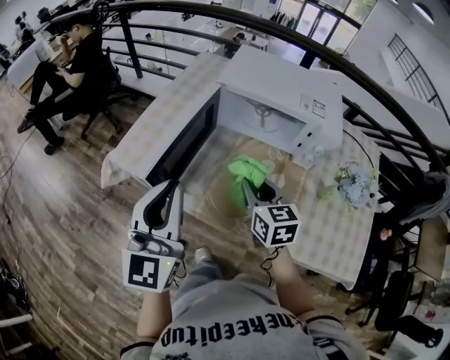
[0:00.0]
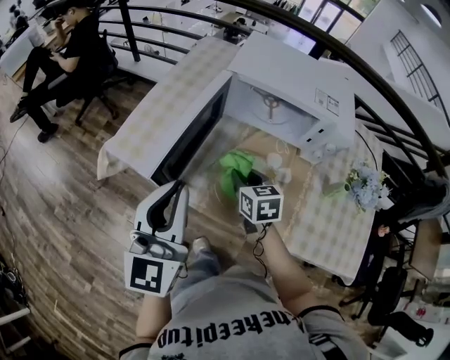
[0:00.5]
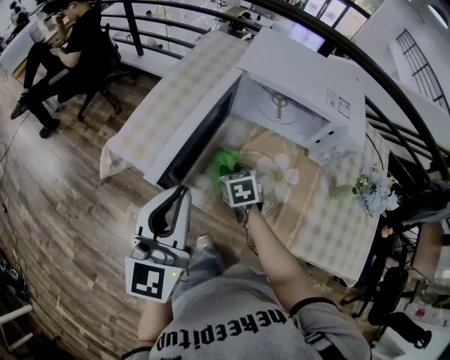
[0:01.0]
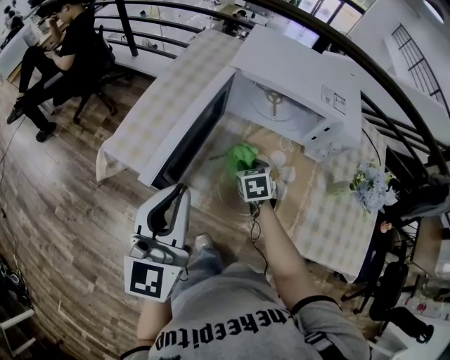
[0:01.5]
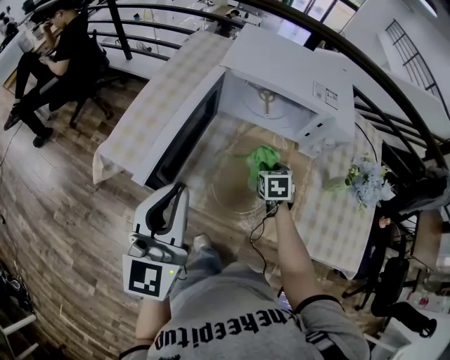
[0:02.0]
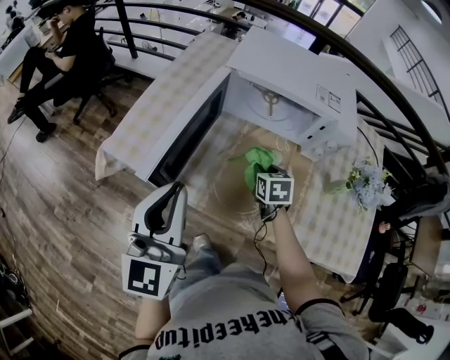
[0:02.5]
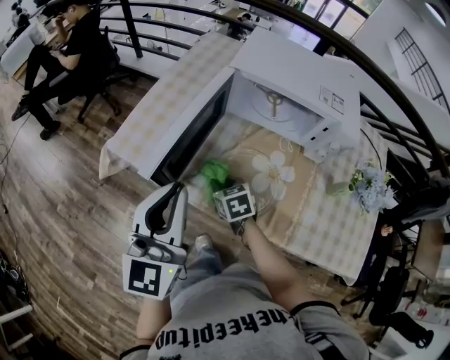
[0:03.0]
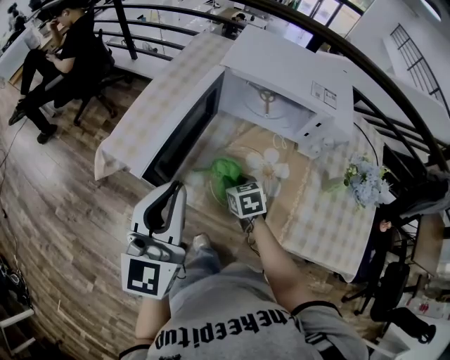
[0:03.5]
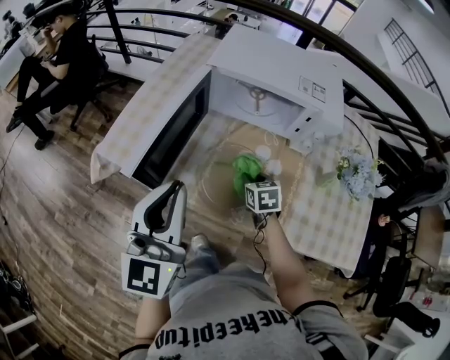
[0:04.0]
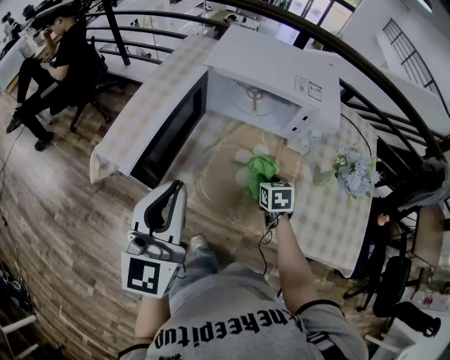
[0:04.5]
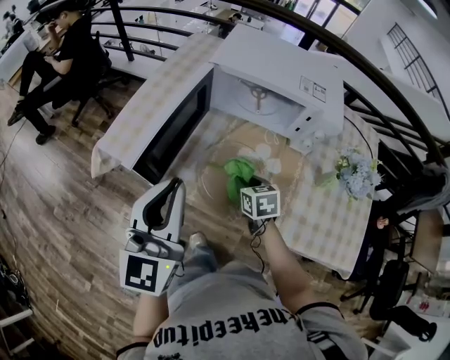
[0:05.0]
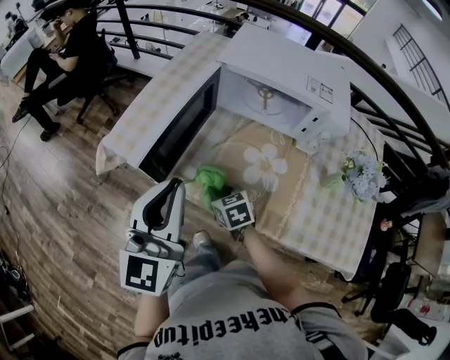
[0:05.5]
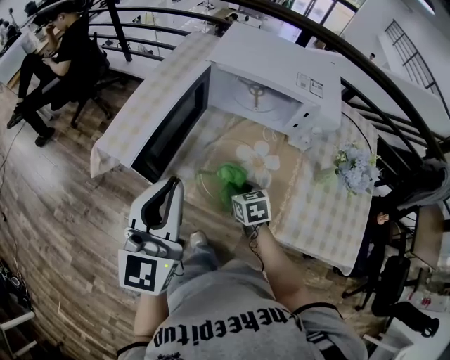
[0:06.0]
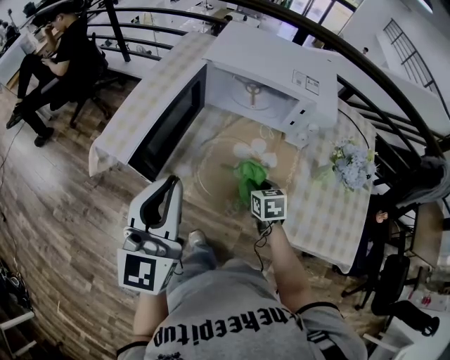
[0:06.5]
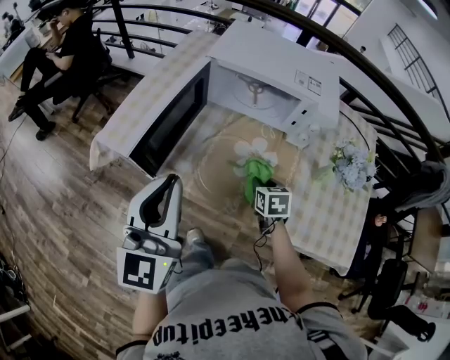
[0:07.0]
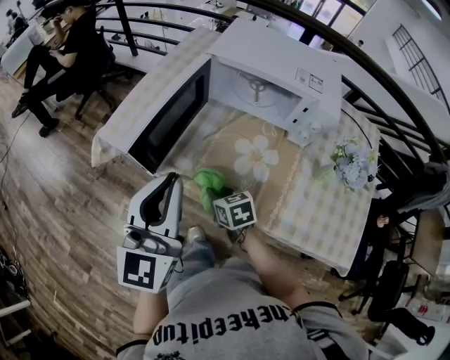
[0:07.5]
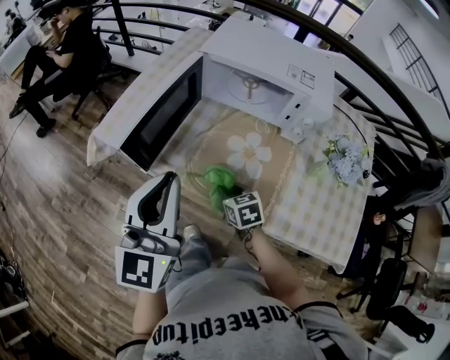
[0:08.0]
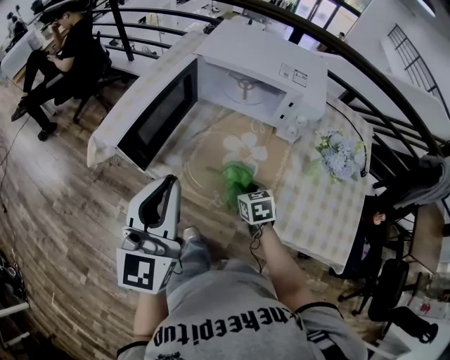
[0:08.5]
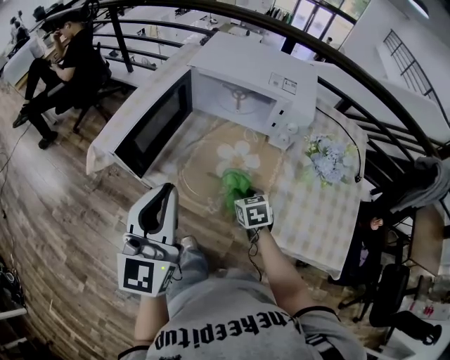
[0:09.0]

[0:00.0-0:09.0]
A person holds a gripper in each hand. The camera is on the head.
0:00.0 to 0:02.0: The right gripper moves downward, forward and to the right, roughly 20 cm, and changes its angle by about 30 degrees. The left gripper heads downward, covering approximately 5 cm.
0:02.0 to 0:04.5: The right gripper moves backward, about 5 cm, and moves roughly 20 cm to the left and comes back. Meanwhile the left gripper changes place by some 5 cm.
0:04.5 to 0:07.0: The right gripper reaches some 20 cm to the left, then returns.
0:07.0 to 0:09.0: The left gripper is displaced backward by approximately 5 cm. The right gripper moves about 15 cm to the left and comes back.

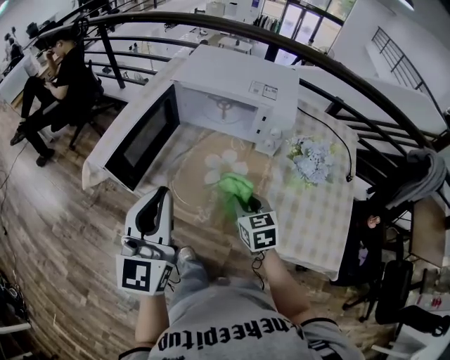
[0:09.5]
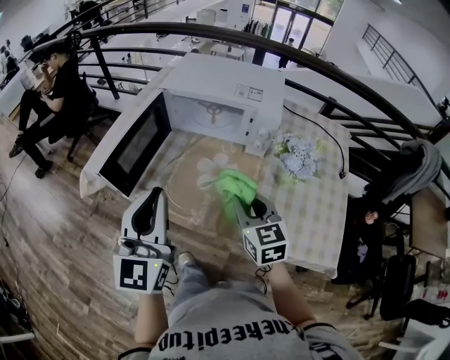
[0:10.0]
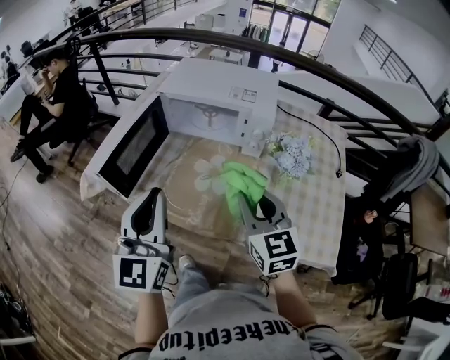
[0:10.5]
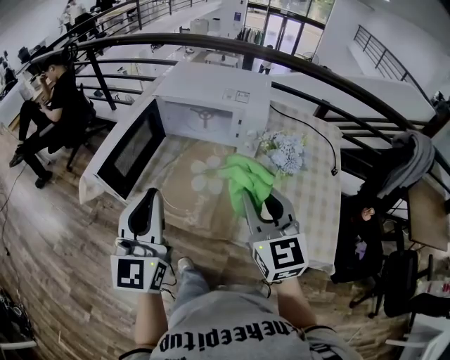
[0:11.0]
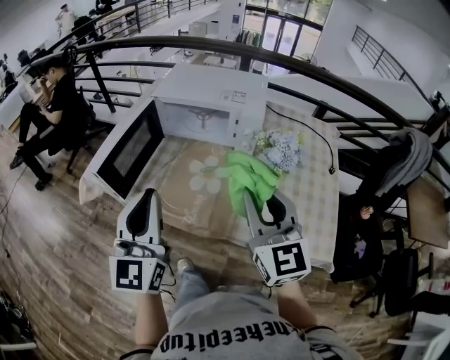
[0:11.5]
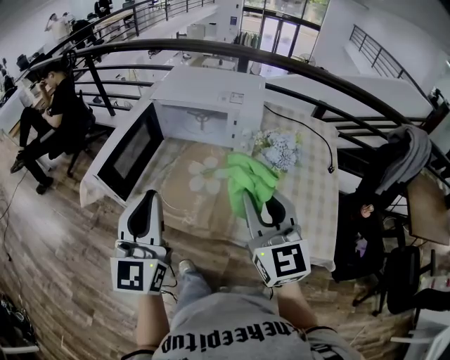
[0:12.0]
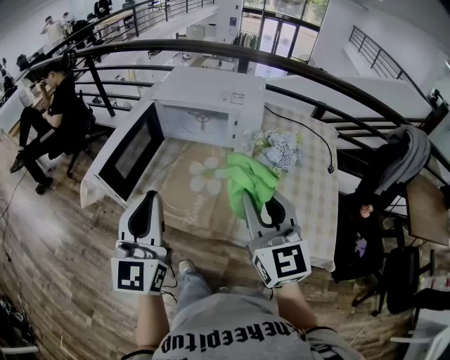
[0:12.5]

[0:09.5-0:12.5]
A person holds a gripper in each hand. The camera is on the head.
0:09.5 to 0:11.0: The right gripper travels upward by about 20 cm, and rotates approximately 30 degrees.
0:11.0 to 0:12.5: There are only small adjustments of the grippers.

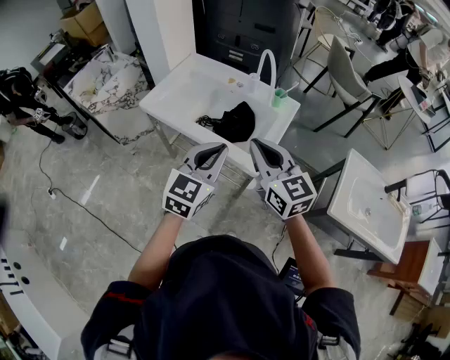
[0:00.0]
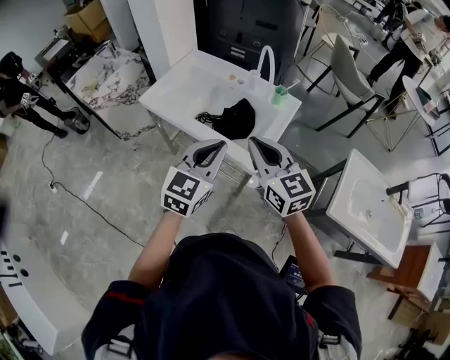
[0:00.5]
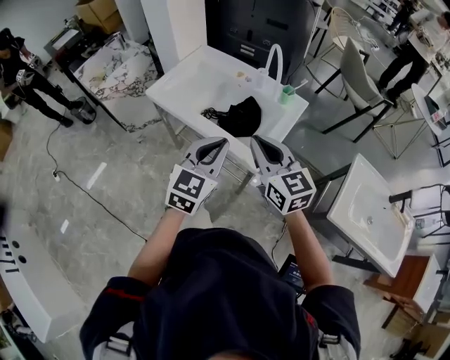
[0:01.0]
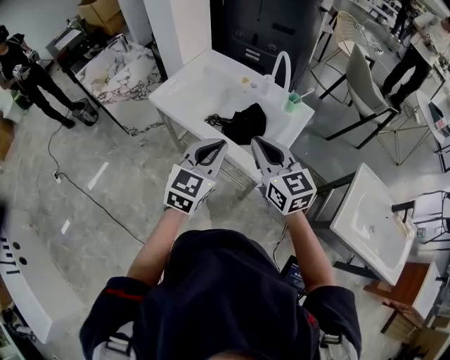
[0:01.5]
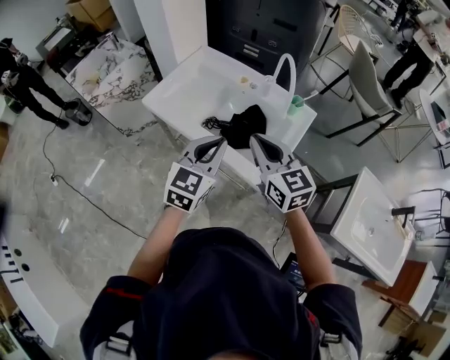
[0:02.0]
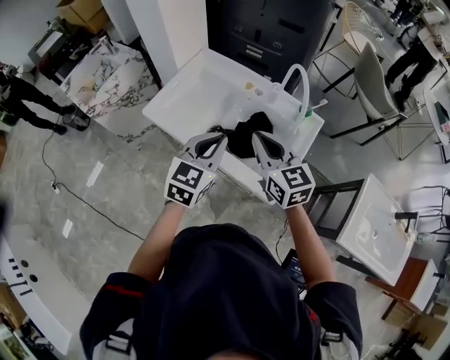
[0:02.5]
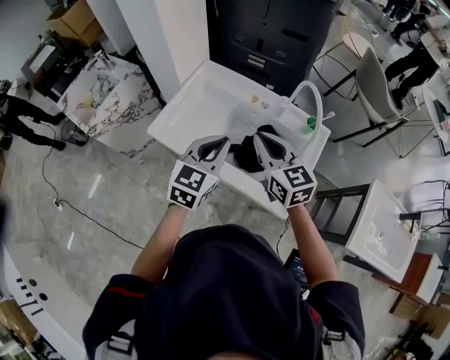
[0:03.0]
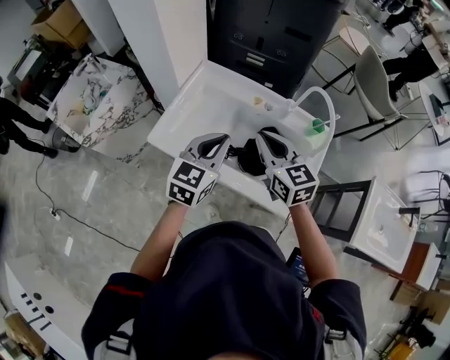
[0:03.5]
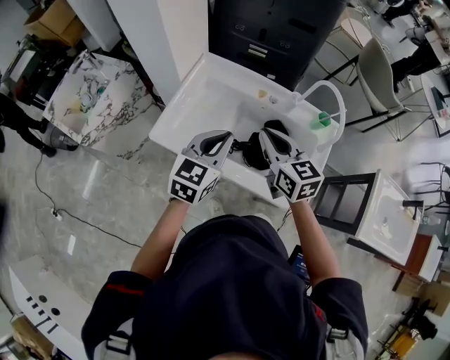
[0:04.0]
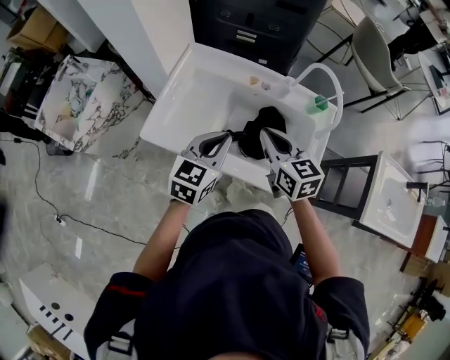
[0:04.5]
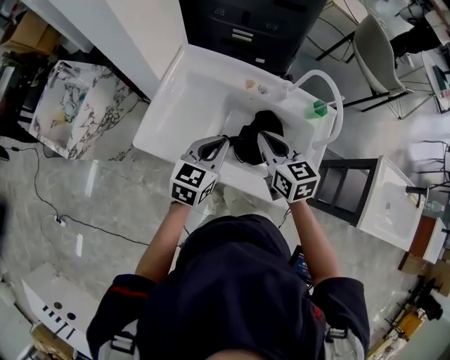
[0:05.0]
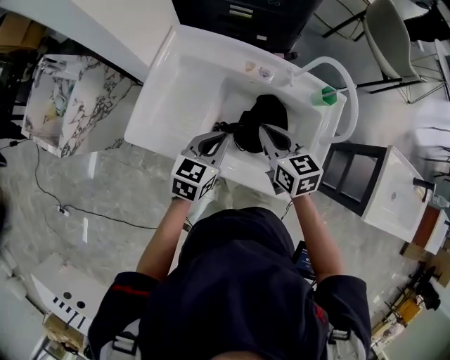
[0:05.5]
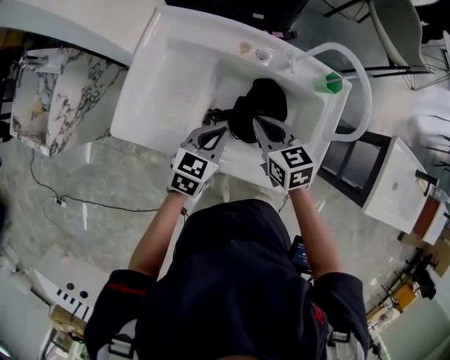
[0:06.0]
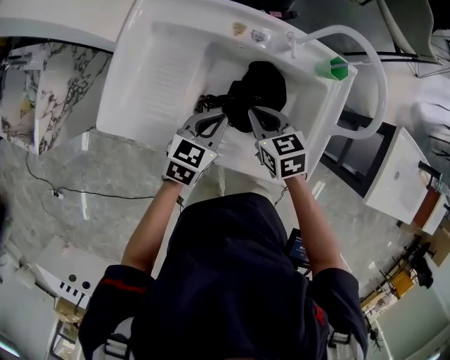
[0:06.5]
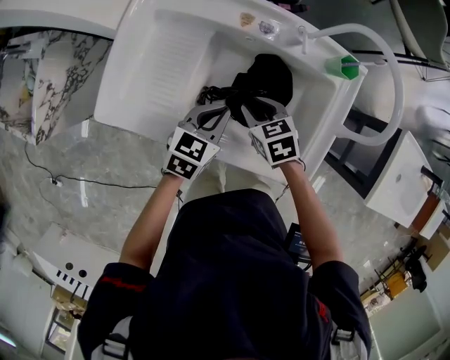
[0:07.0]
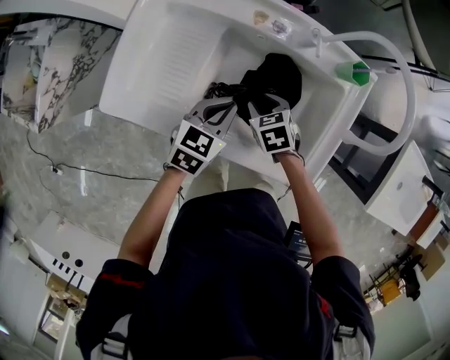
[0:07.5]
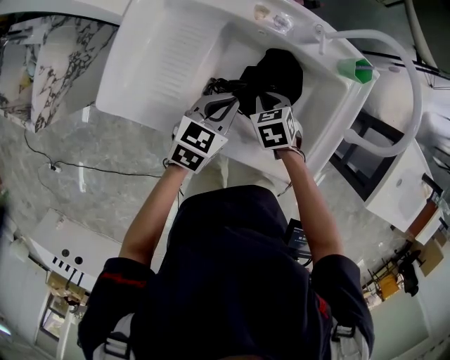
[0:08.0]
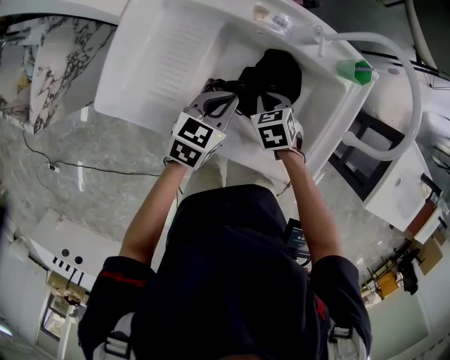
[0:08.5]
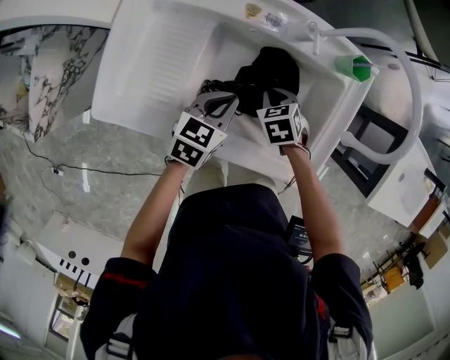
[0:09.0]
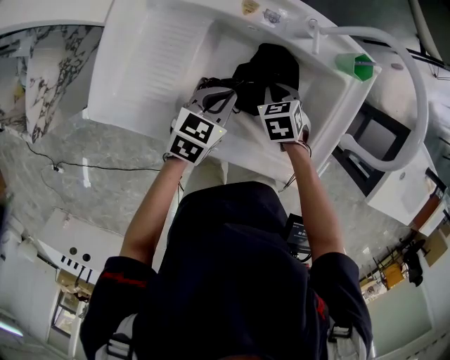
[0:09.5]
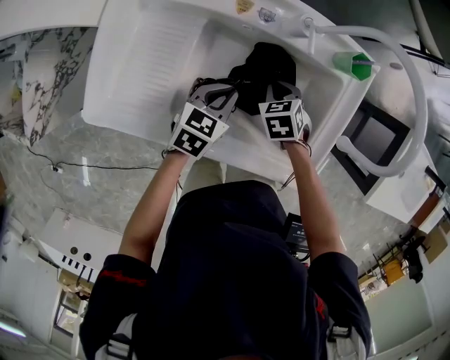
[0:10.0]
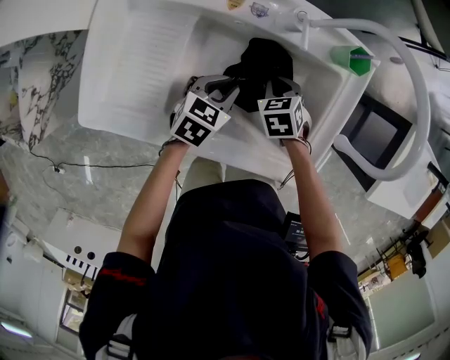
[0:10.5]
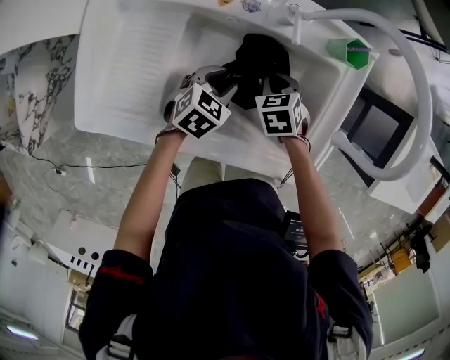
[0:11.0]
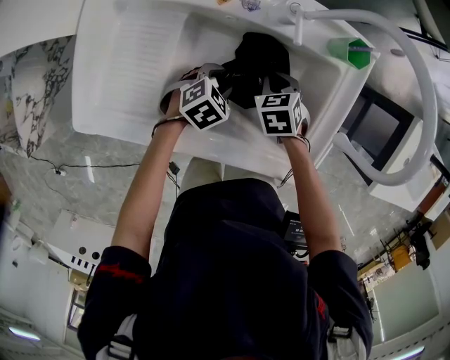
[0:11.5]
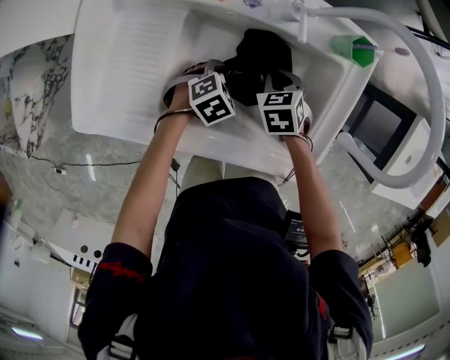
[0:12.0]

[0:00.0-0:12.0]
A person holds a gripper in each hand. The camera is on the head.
0:00.0 to 0:02.0: The two grippers go some 10 cm forward.
0:02.0 to 0:04.0: Both grippers travel together forward and to the left, approximately 20 cm.
0:04.0 to 0:06.0: The two grippers go about 20 cm downward. The left gripper swivels about 20 degrees.
0:06.0 to 0:08.0: The right gripper travels downward by approximately 15 cm, points its fingers approximately 30 degrees further downward, and opens, then closes once more.
0:08.0 to 0:10.0: The right gripper travels to the right and forward by approximately 5 cm. The left gripper goes roughly 5 cm downward.
0:10.0 to 0:12.0: The left gripper shifts roughly 10 cm downward, swivels roughly 40 degrees, and opens up.

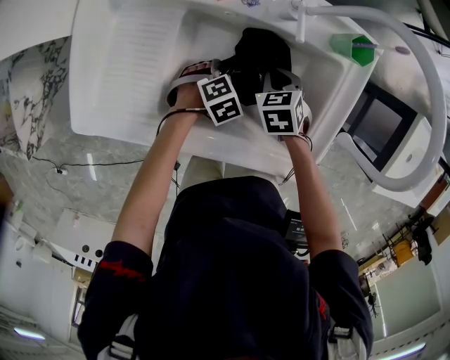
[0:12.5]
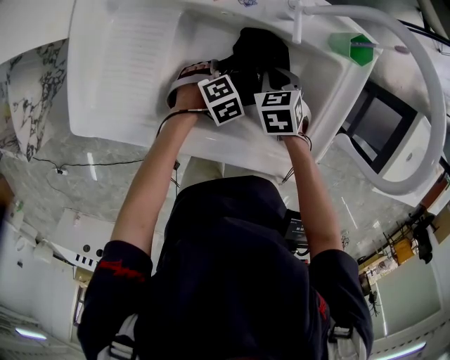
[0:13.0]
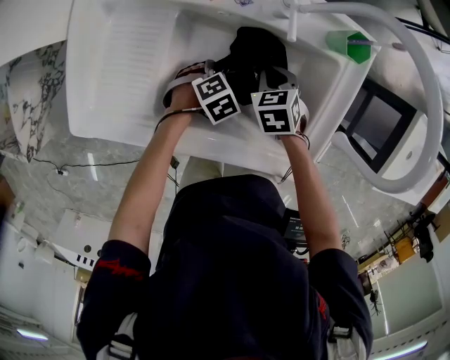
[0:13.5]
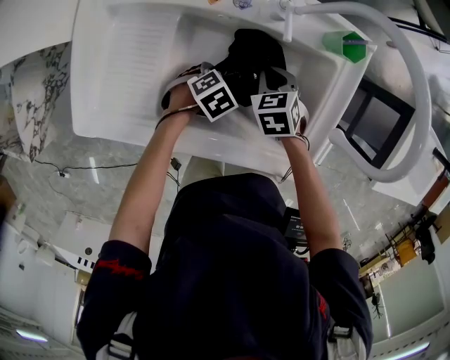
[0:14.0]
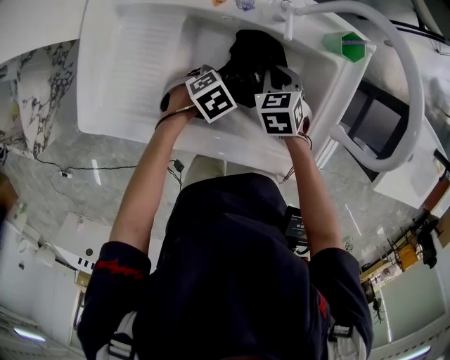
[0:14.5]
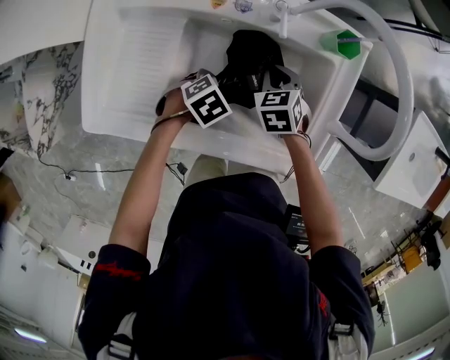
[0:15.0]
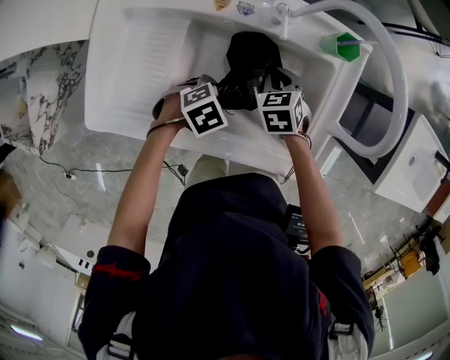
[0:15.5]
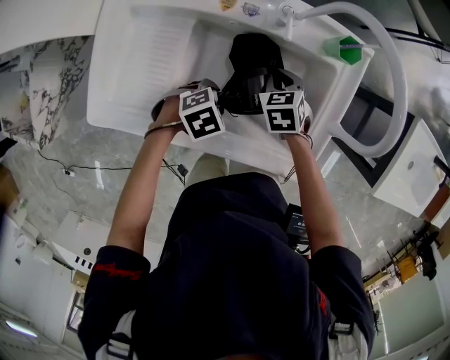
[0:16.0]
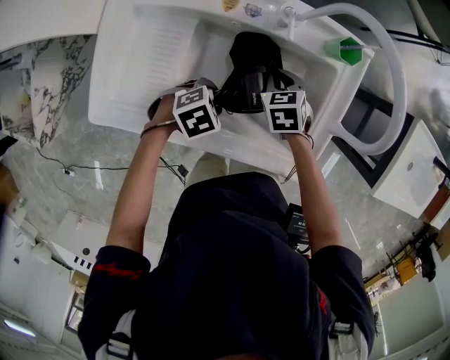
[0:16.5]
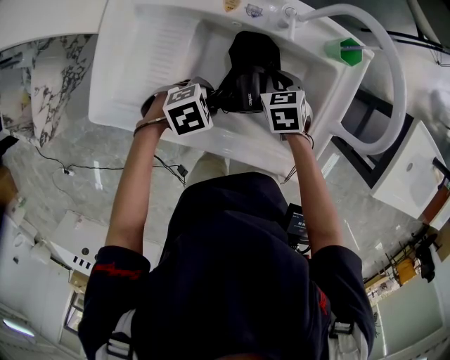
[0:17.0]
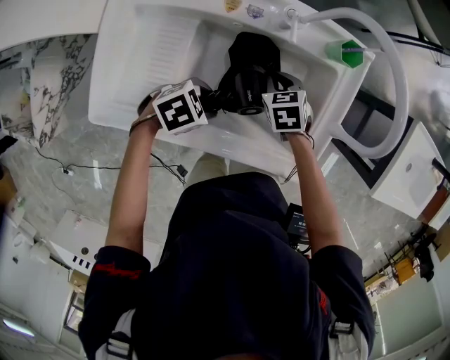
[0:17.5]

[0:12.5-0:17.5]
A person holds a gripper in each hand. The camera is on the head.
0:12.5 to 0:15.0: The left gripper shifts about 5 cm upward.
0:15.0 to 0:17.5: The left gripper travels upward by about 5 cm.
